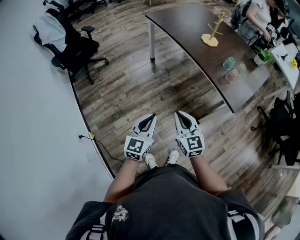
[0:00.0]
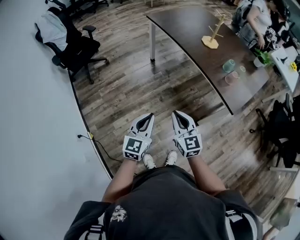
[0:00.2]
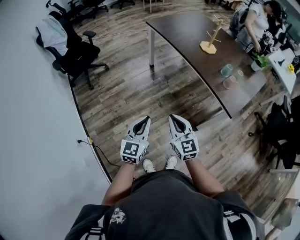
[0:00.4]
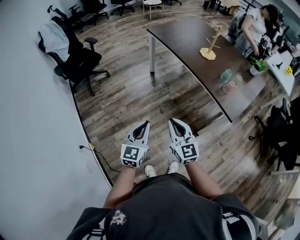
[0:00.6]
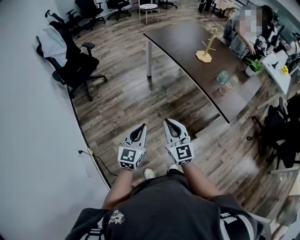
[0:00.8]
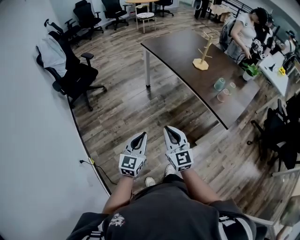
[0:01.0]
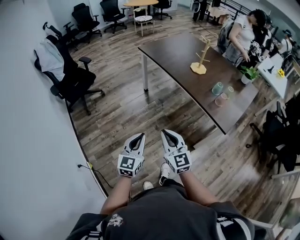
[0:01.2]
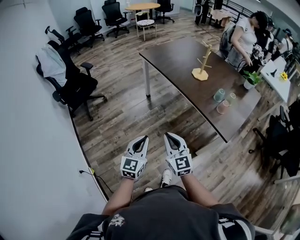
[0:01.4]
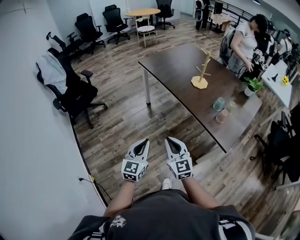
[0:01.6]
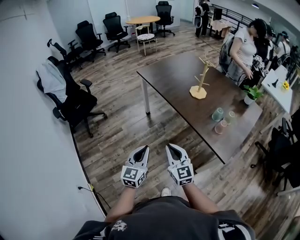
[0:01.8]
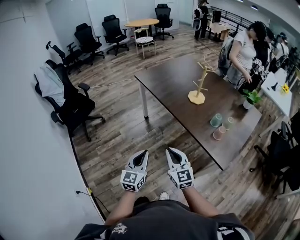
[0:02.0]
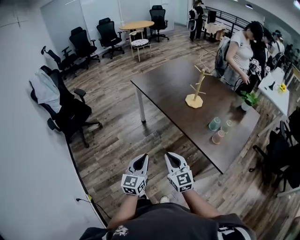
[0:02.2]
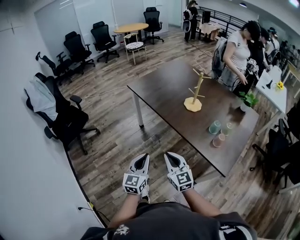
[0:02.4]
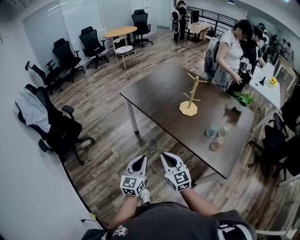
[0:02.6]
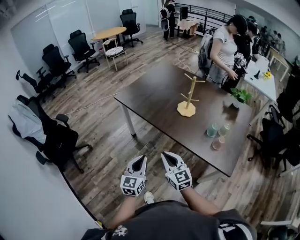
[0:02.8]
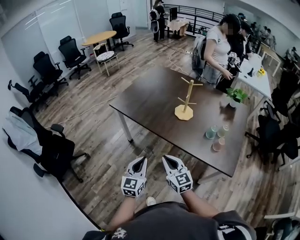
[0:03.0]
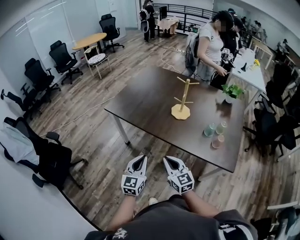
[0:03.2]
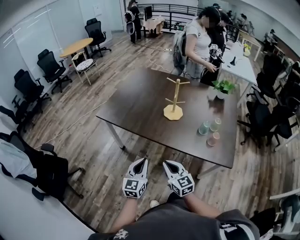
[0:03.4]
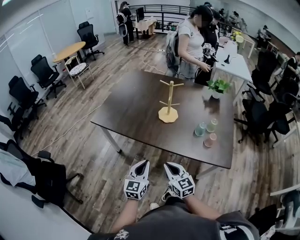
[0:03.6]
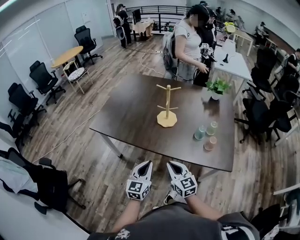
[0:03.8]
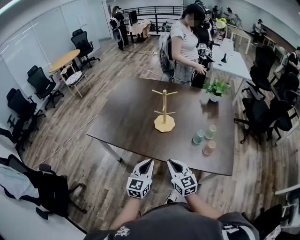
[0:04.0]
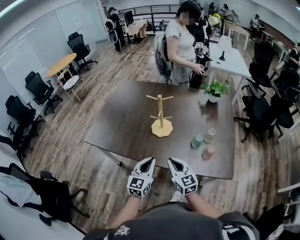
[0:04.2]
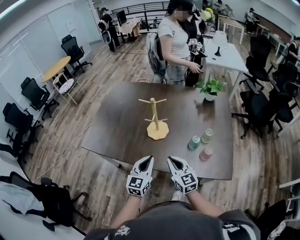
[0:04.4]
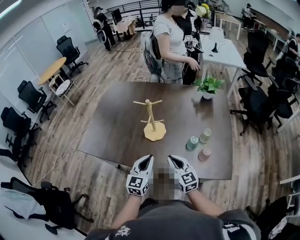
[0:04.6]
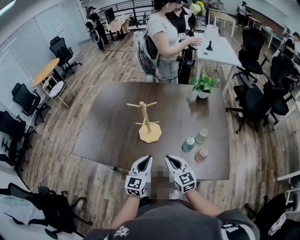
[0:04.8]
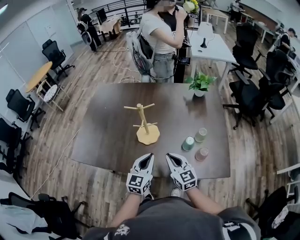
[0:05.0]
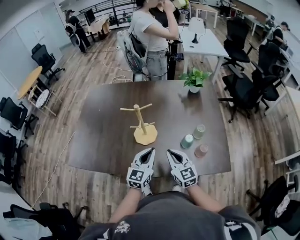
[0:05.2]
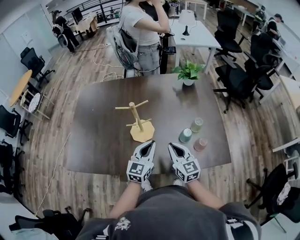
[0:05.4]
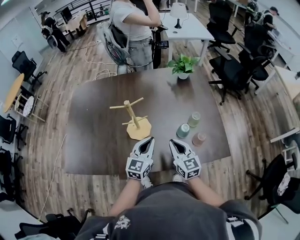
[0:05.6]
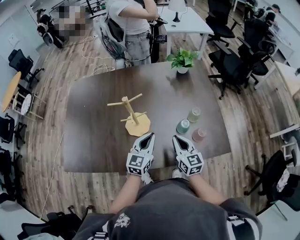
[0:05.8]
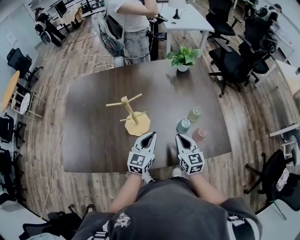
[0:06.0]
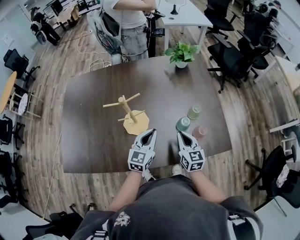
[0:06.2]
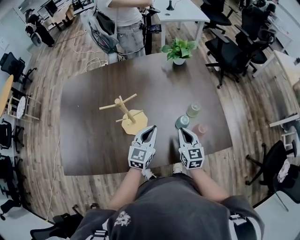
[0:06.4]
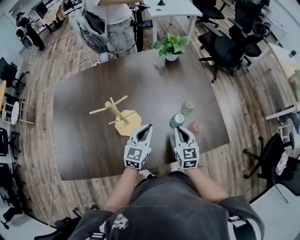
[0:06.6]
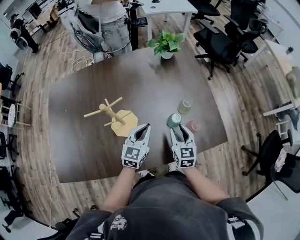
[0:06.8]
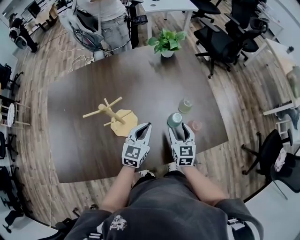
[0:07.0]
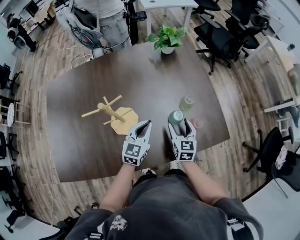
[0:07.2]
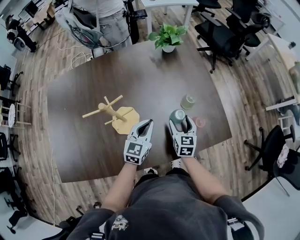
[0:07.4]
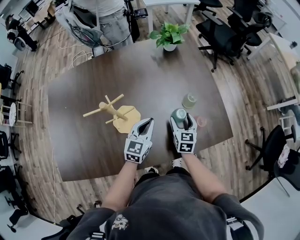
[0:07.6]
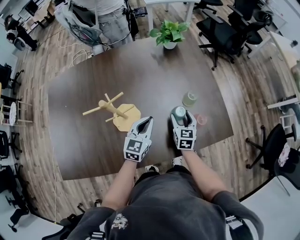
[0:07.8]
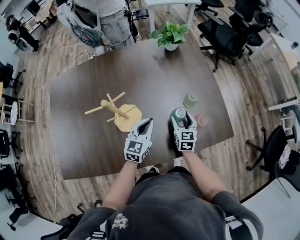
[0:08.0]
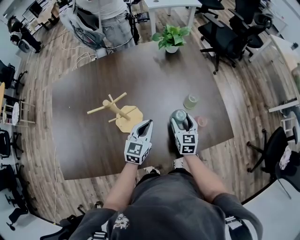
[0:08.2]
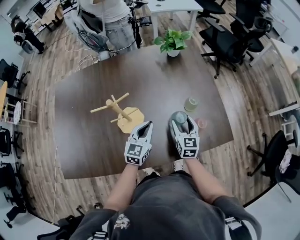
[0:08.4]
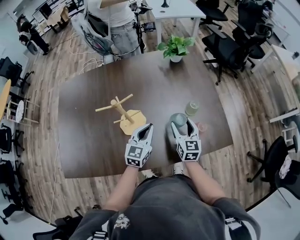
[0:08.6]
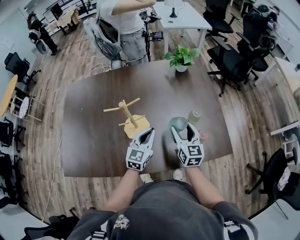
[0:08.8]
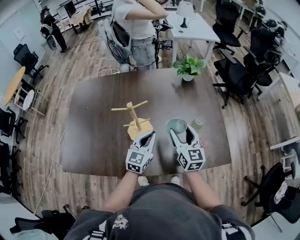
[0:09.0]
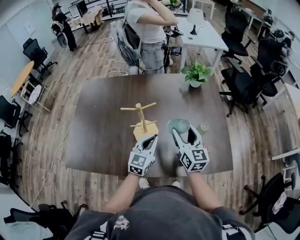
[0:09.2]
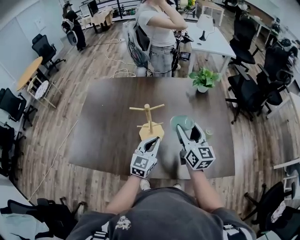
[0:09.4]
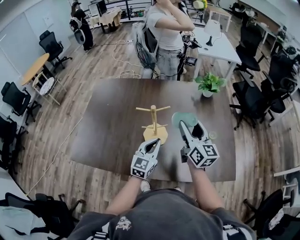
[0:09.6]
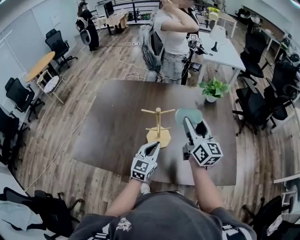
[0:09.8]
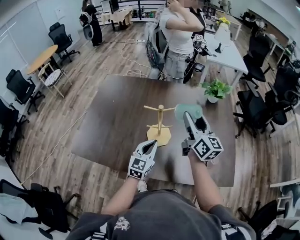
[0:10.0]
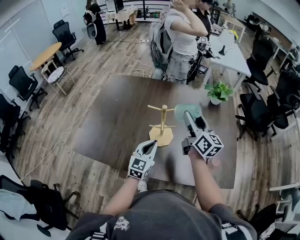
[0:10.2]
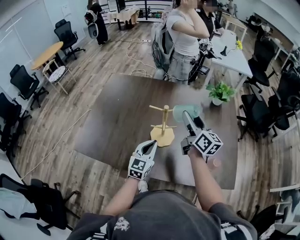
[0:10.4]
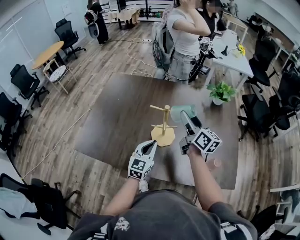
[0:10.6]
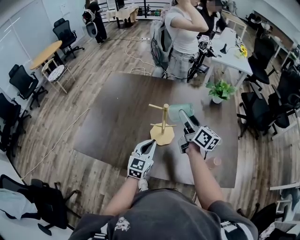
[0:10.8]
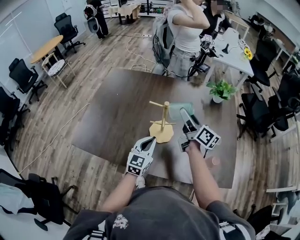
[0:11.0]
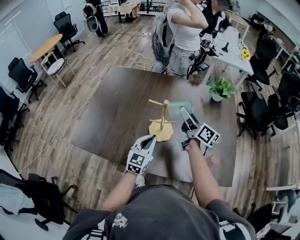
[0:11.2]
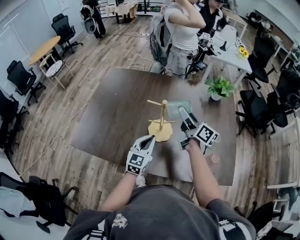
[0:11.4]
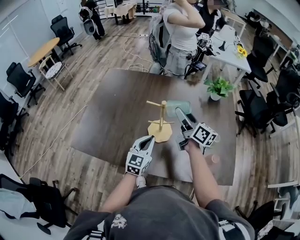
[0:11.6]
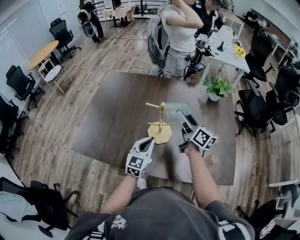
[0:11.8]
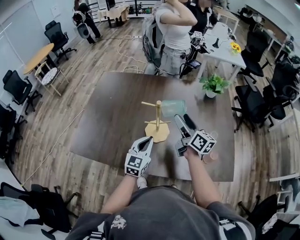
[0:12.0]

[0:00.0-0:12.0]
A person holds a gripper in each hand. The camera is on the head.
0:00.0 to 0:01.6: The grippers both shift forward by some 10 cm.
0:01.6 to 0:03.0: The two grippers go some 30 cm forward.
0:03.0 to 0:04.4: Both grippers move forward and to the right, roughly 25 cm. The right gripper turns by some 20 degrees, while the left gripper swivels approximately 20 degrees.
0:04.4 to 0:06.0: The left gripper shifts by about 20 cm, and changes its angle by about 30 degrees. Meanwhile the right gripper changes place by some 15 cm, and rotates about 30 degrees.
0:06.0 to 0:07.6: The left gripper moves forward and downward, about 10 cm, while the right gripper travels downward and forward by some 15 cm, rotates approximately 30 degrees, and opens up.
0:07.6 to 0:09.0: The left gripper moves upward, about 5 cm; the right gripper travels upward by some 20 cm, and changes its angle by approximately 30 degrees.
0:09.0 to 0:10.4: The left gripper heads to the left, covering roughly 10 cm. Meanwhile the right gripper heads to the left, upward and forward, covering approximately 15 cm, and swivels approximately 30 degrees.
0:10.4 to 0:12.0: The right gripper moves downward, roughly 5 cm.

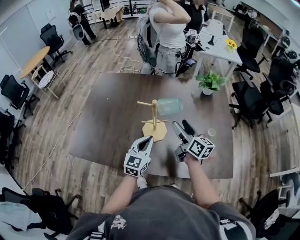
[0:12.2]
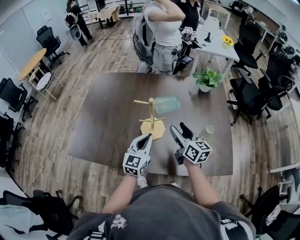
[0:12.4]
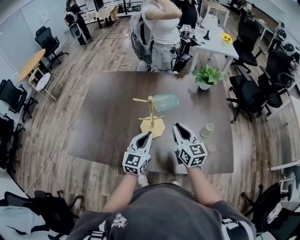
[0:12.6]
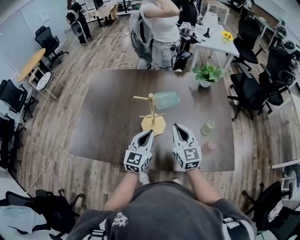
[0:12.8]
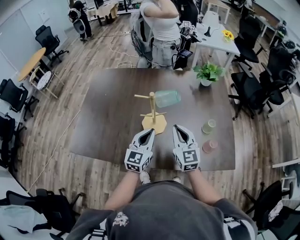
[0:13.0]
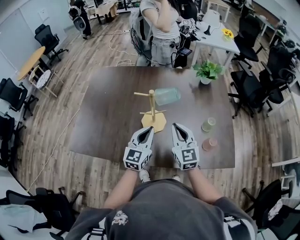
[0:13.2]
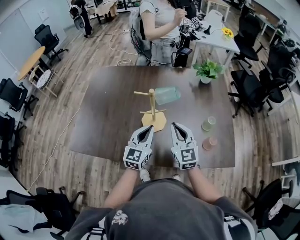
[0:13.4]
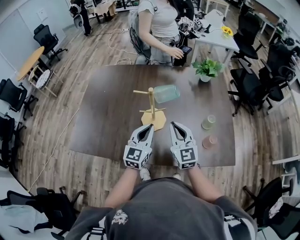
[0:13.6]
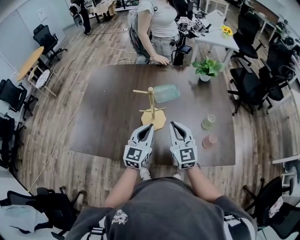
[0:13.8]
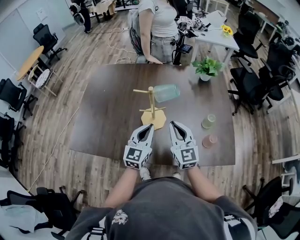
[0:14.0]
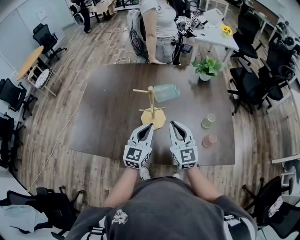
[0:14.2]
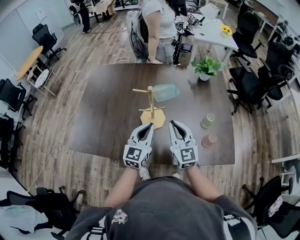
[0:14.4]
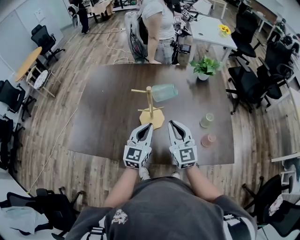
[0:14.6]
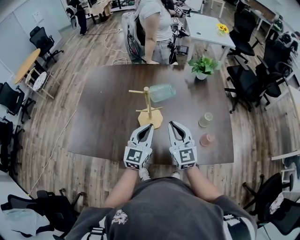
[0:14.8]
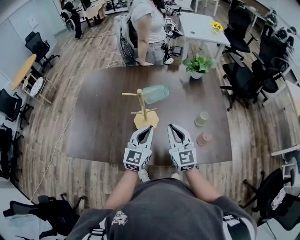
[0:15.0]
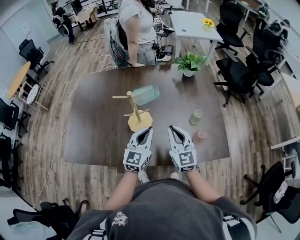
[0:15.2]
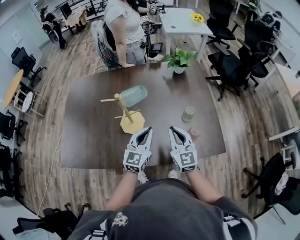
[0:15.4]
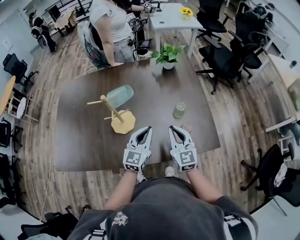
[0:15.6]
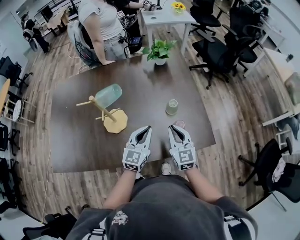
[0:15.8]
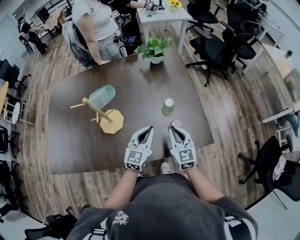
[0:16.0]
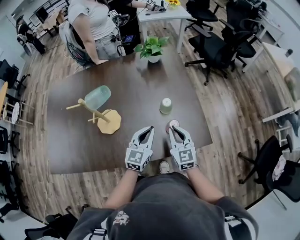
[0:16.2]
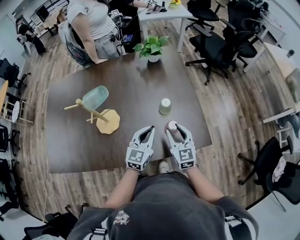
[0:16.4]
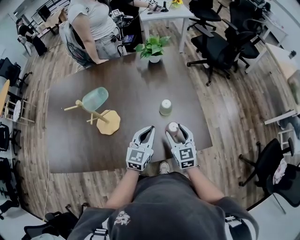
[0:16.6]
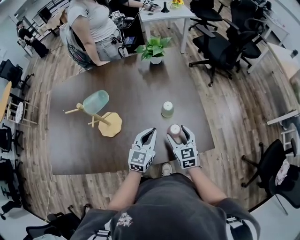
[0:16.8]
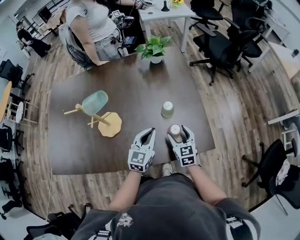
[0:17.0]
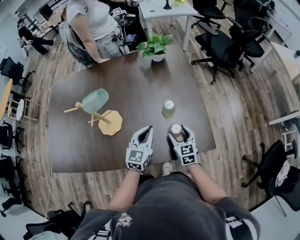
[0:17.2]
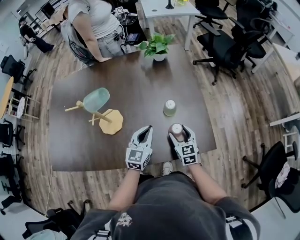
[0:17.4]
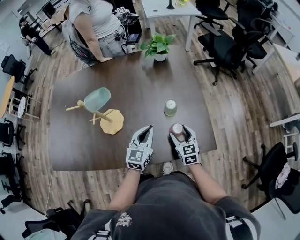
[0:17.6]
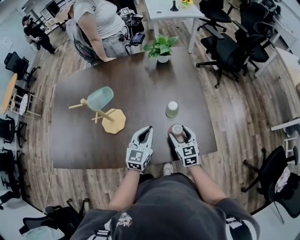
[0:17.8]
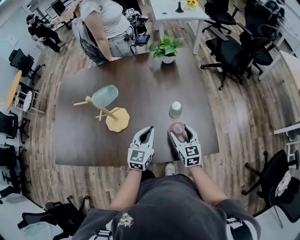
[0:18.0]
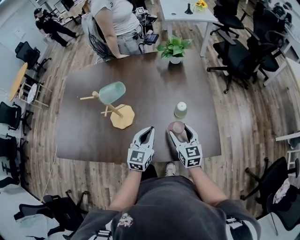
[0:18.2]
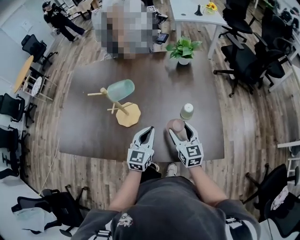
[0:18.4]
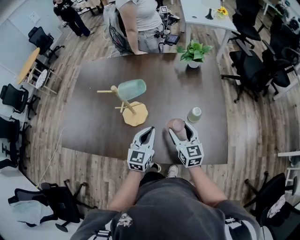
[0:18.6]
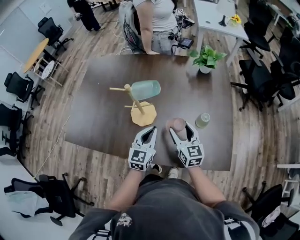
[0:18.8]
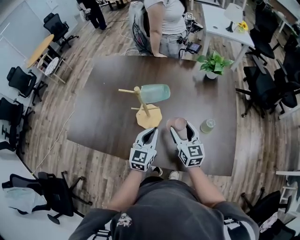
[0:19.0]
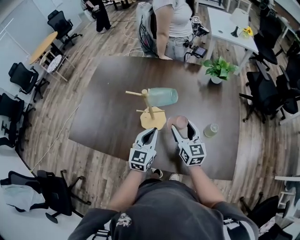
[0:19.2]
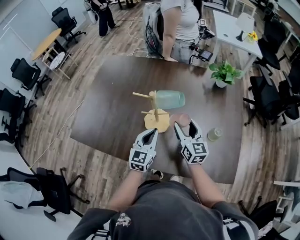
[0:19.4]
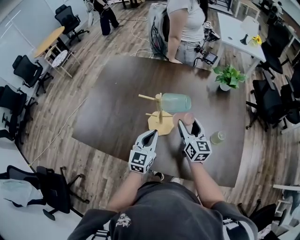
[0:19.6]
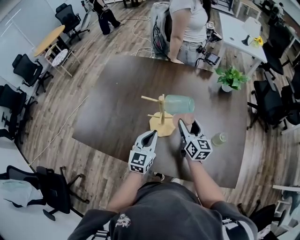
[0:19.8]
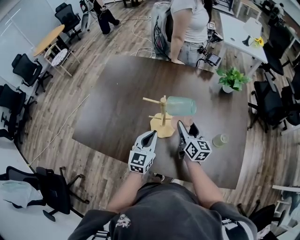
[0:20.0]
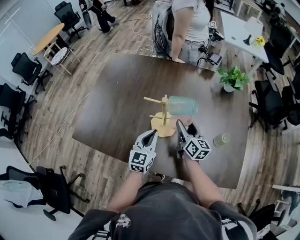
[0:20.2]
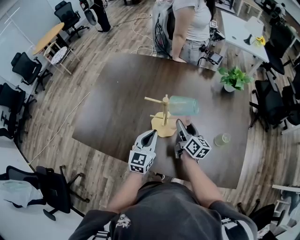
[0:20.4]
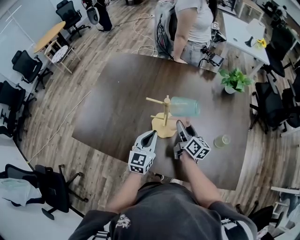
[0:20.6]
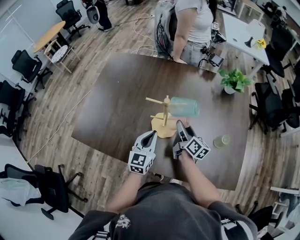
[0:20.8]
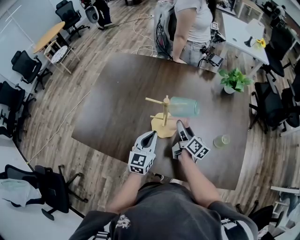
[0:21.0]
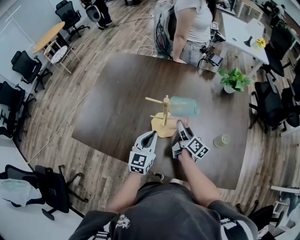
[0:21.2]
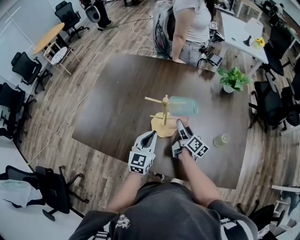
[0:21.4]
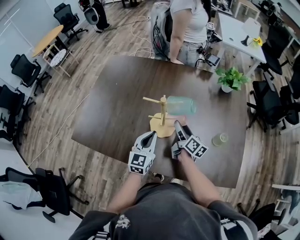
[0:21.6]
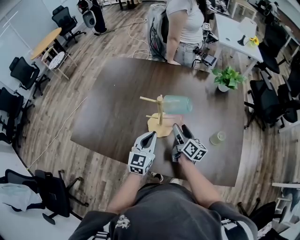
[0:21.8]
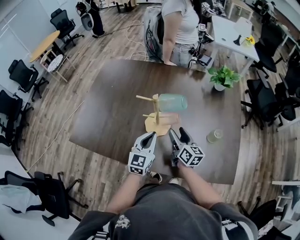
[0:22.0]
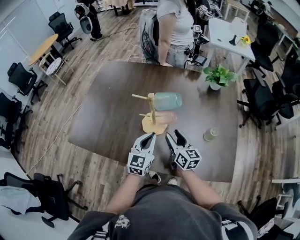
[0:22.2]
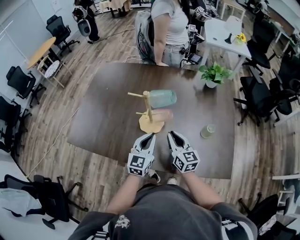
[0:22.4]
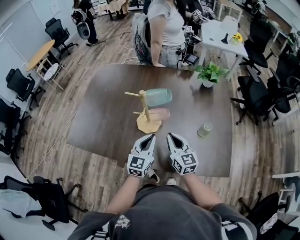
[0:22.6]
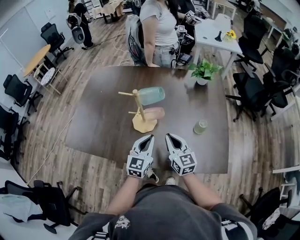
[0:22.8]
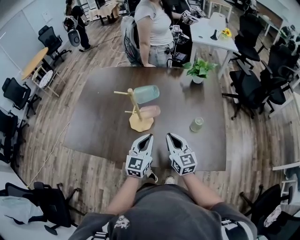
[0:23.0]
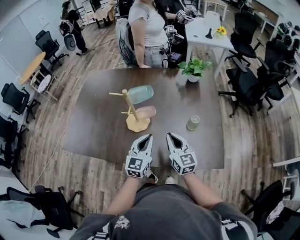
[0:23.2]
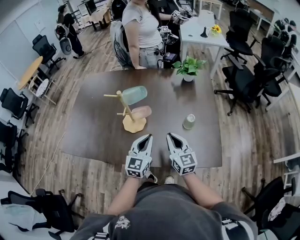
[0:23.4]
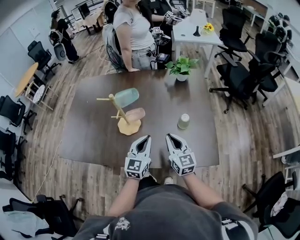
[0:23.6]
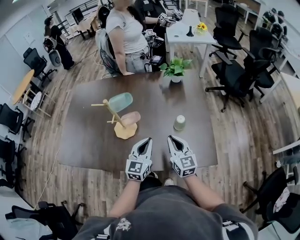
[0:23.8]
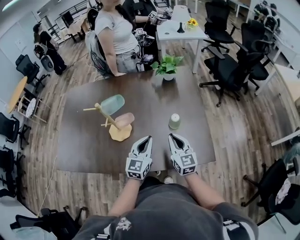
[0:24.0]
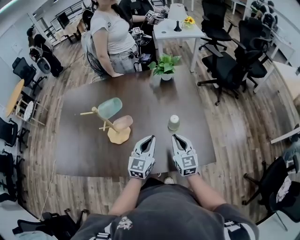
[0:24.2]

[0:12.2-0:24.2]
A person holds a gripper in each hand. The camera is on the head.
0:12.2 to 0:13.8: The right gripper goes some 10 cm backward, rolls counterclockwise, seen from behind, by roughly 40 degrees, and closes.
0:13.8 to 0:15.2: Both grippers travel together to the right, approximately 5 cm.
0:15.2 to 0:16.6: Both grippers move to the right and downward, about 25 cm. The right gripper opens.
0:16.6 to 0:18.2: The left gripper moves to the left, some 5 cm.
0:18.2 to 0:19.8: The right gripper travels to the left and forward by about 25 cm, while the left gripper is displaced to the left by some 25 cm.
0:19.8 to 0:21.2: The right gripper is displaced downward by about 5 cm, and turns by about 40 degrees.
0:21.2 to 0:22.6: The right gripper heads backward and upward, covering approximately 15 cm, rotates around the line of its fingers by roughly 50 degrees, counterclockwise from behind, and closes. Meanwhile the left gripper moves to the right and backward, some 10 cm.
0:22.6 to 0:24.2: Both grippers move to the right, some 20 cm. The right gripper turns by approximately 20 degrees.
